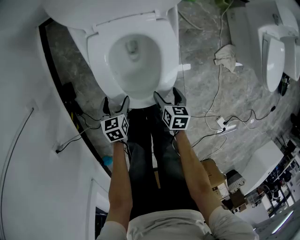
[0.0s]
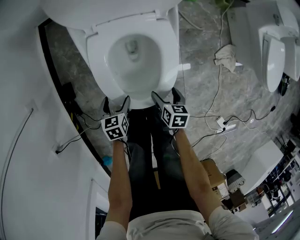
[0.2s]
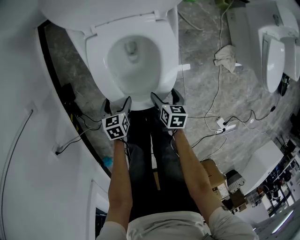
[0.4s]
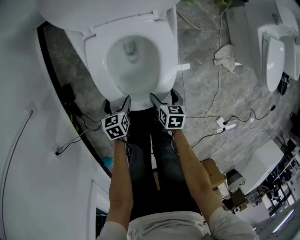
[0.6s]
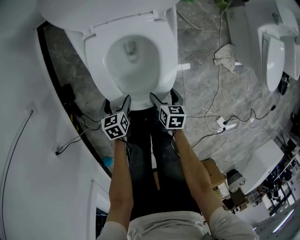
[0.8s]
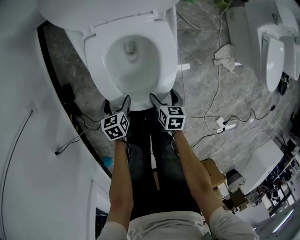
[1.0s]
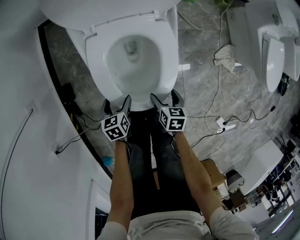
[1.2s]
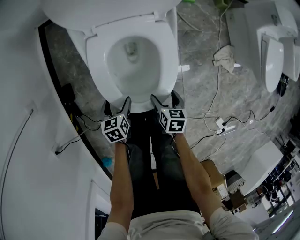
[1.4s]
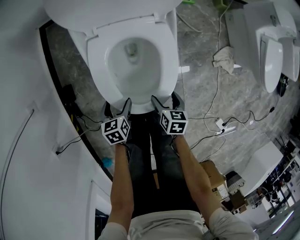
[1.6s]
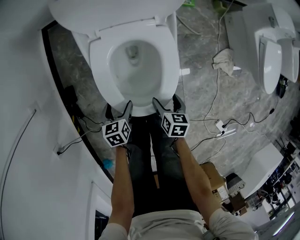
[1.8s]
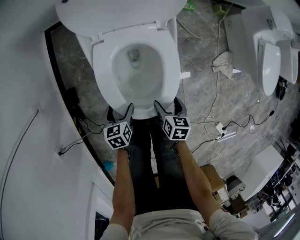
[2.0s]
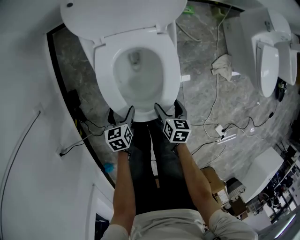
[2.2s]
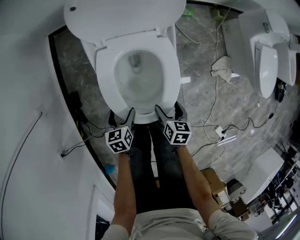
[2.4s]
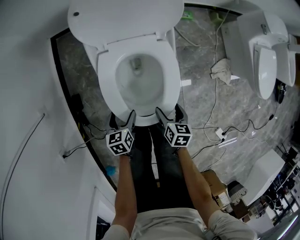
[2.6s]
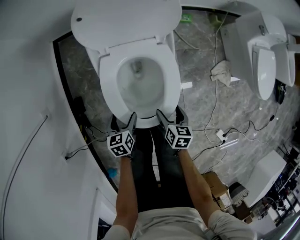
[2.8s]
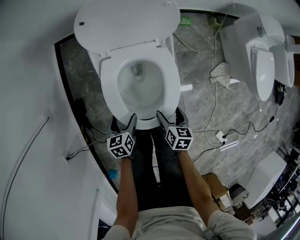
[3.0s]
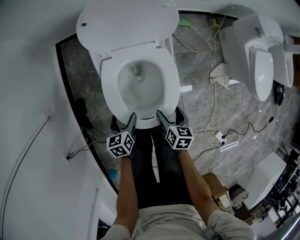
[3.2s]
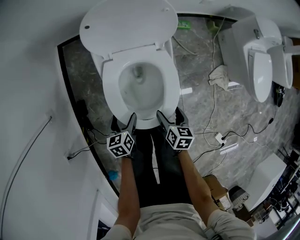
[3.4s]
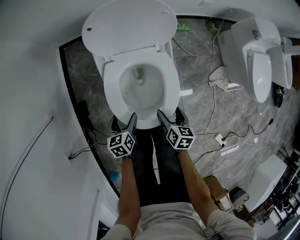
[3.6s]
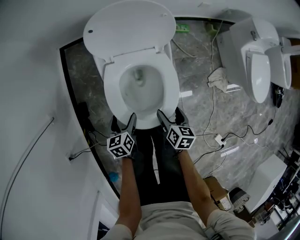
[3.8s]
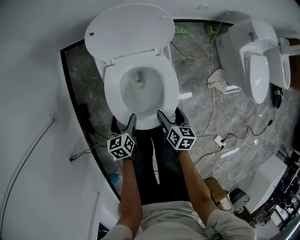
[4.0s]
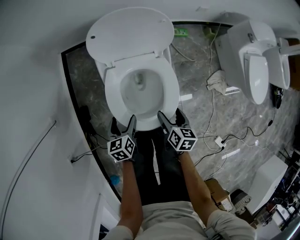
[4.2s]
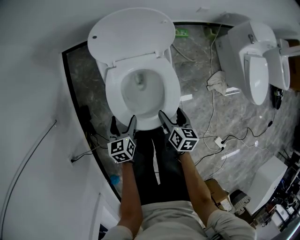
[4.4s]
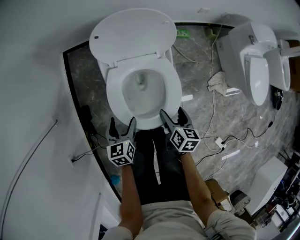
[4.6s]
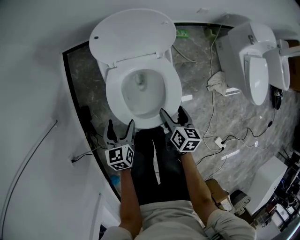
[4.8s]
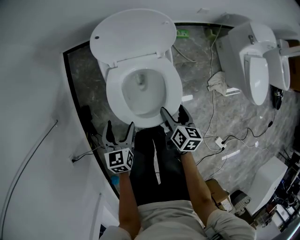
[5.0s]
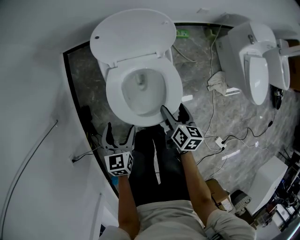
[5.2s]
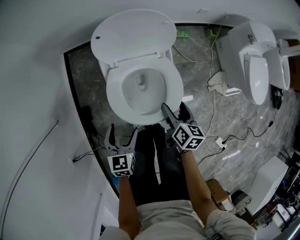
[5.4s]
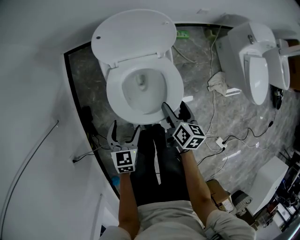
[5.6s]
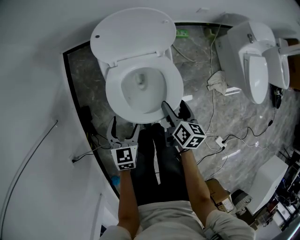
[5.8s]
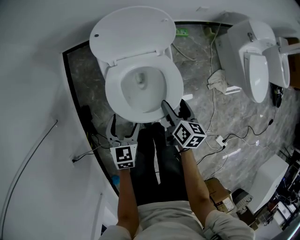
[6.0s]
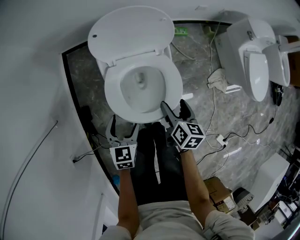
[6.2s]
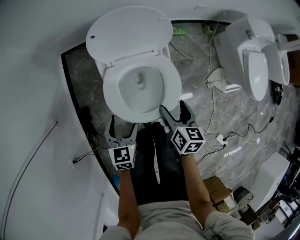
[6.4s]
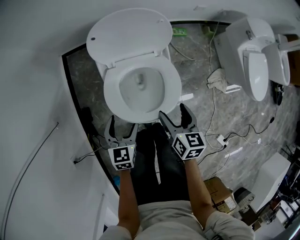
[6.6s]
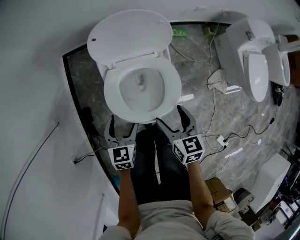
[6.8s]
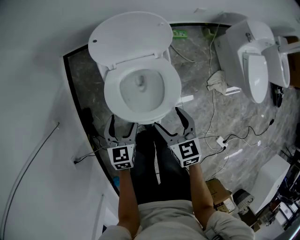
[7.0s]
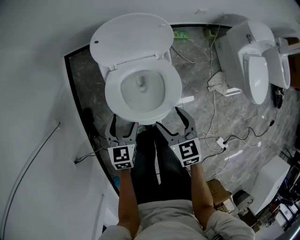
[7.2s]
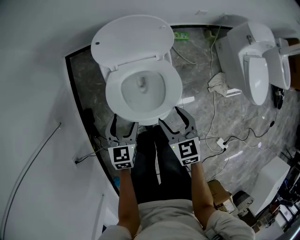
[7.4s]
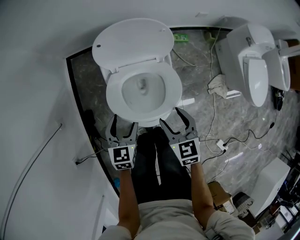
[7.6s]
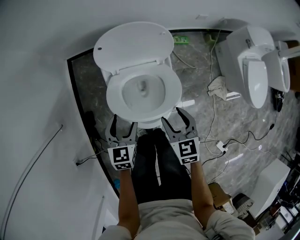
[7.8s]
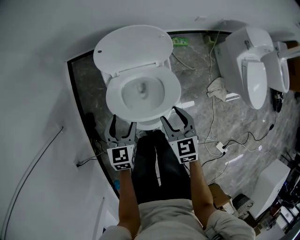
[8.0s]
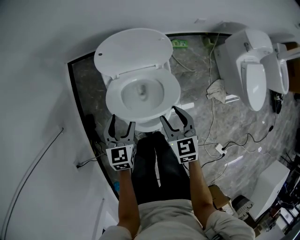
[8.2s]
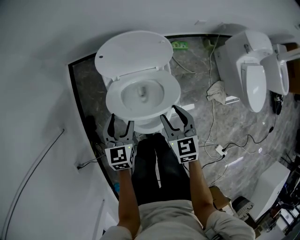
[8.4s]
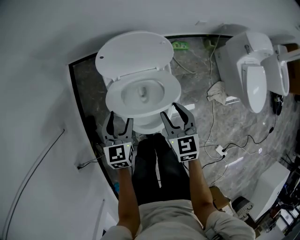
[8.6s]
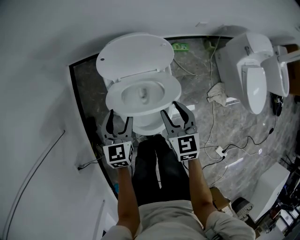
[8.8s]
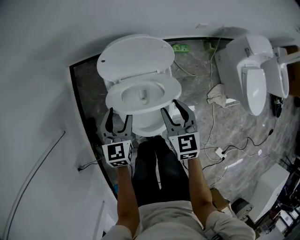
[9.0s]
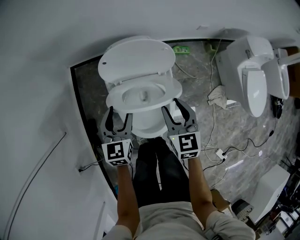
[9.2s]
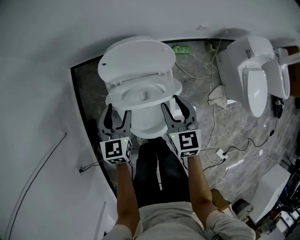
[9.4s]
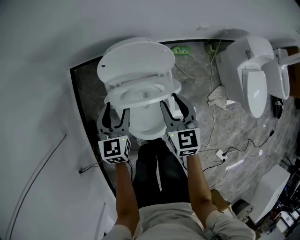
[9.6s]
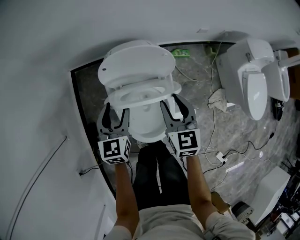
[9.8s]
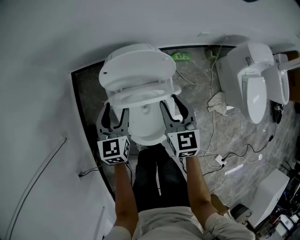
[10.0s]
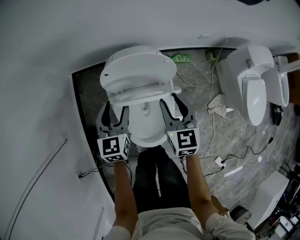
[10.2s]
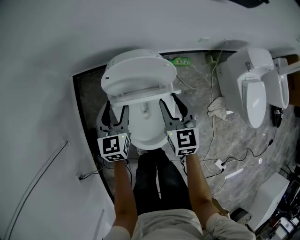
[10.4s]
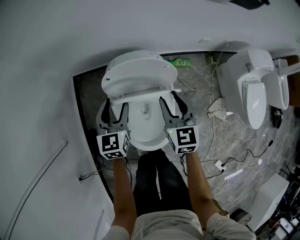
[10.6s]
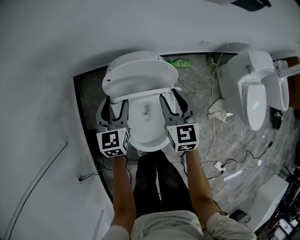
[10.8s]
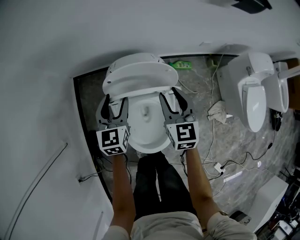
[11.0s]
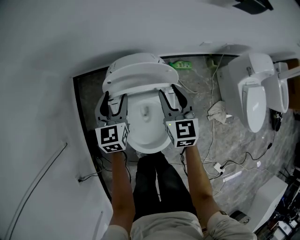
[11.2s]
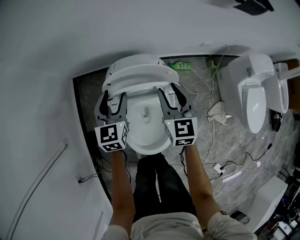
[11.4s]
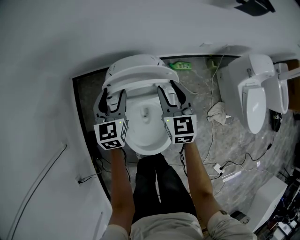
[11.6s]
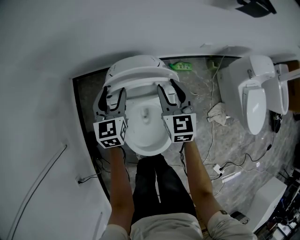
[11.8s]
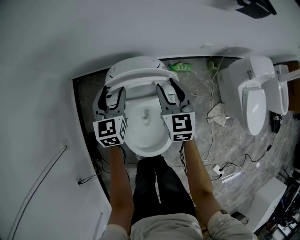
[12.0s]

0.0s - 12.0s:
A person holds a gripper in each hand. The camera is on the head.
0.0s - 1.6s: The grippers stay close to where they were, moving slightly.
1.6s - 3.0s: The grippers both shift upward by roughly 10 cm.
3.0s - 4.4s: Both grippers travel together upward, approximately 10 cm.
4.4s - 6.0s: Both grippers move upward, some 5 cm. The left gripper changes its angle by some 30 degrees.
6.0s - 7.6s: The right gripper shifts some 5 cm upward, and rotates around the line of its fingers by about 40 degrees, counterclockwise from behind.
7.6s - 9.0s: The left gripper is displaced forward and upward by about 10 cm. Meanwhile the right gripper shifts approximately 10 cm forward.
9.0s - 10.4s: Both grippers travel together forward, approximately 10 cm.
10.4s - 12.0s: The grippers both shift forward by some 10 cm.

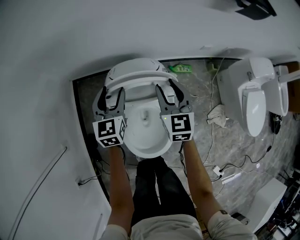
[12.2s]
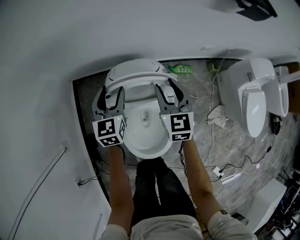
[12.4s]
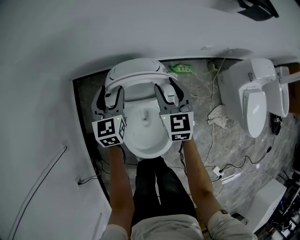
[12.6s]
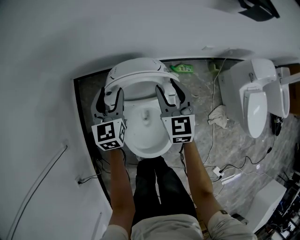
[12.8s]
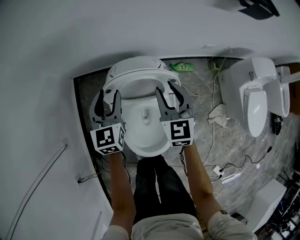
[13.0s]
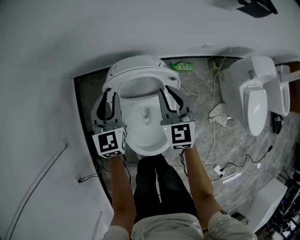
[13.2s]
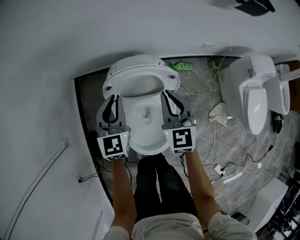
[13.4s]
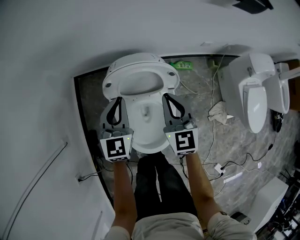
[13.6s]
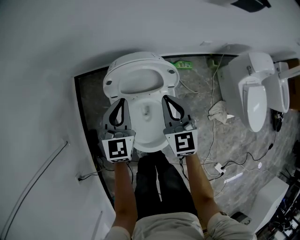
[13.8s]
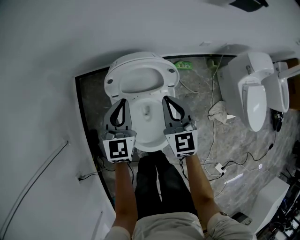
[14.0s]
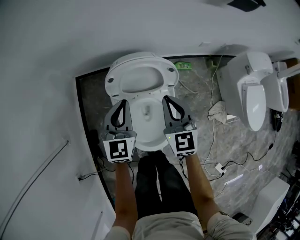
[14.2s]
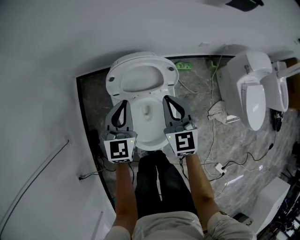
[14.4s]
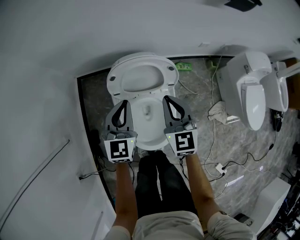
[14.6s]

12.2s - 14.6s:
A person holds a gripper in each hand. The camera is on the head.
12.2s - 13.4s: The two grippers go approximately 5 cm backward. The right gripper closes its fingers; the left gripper closes up.
13.4s - 14.6s: Both grippers travel together backward, approximately 5 cm.

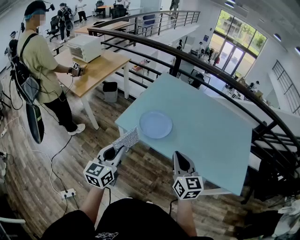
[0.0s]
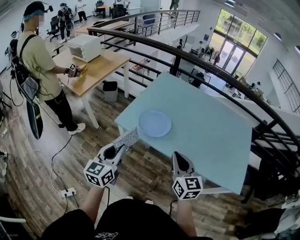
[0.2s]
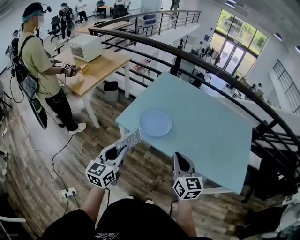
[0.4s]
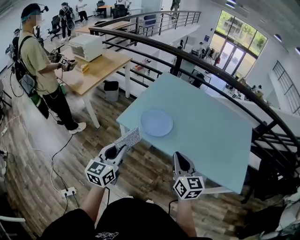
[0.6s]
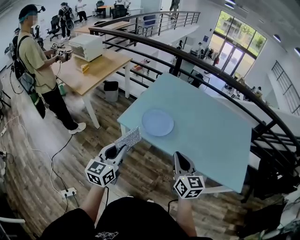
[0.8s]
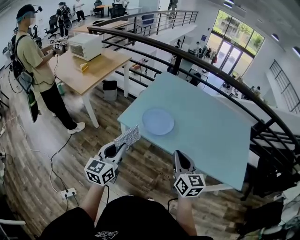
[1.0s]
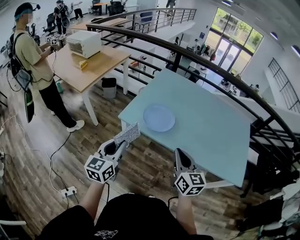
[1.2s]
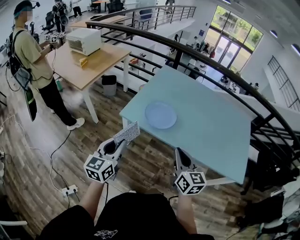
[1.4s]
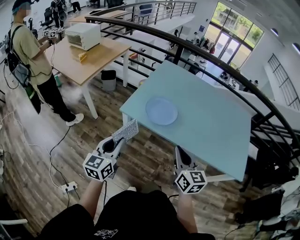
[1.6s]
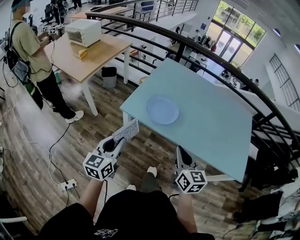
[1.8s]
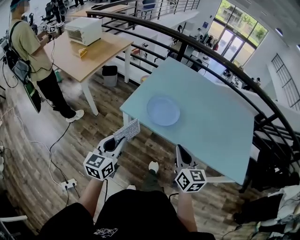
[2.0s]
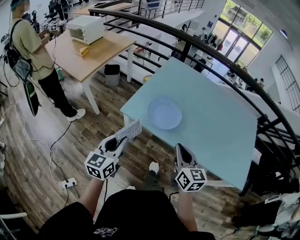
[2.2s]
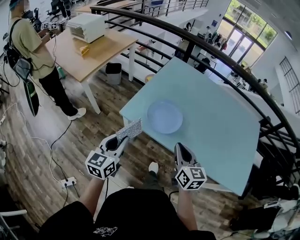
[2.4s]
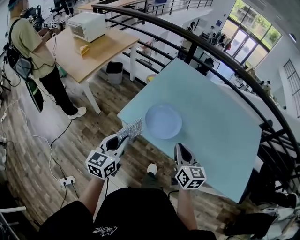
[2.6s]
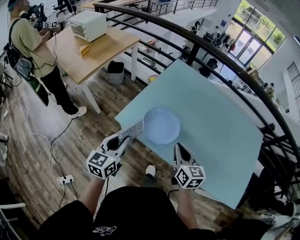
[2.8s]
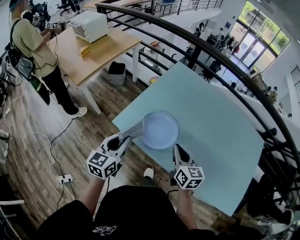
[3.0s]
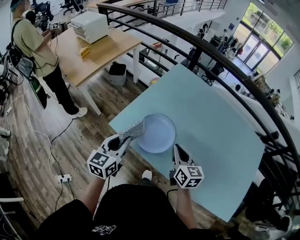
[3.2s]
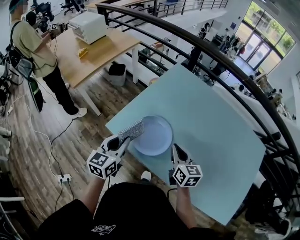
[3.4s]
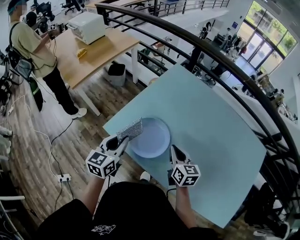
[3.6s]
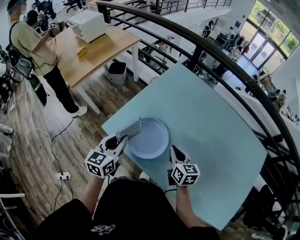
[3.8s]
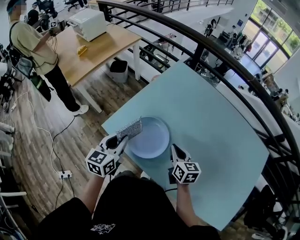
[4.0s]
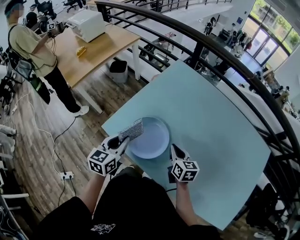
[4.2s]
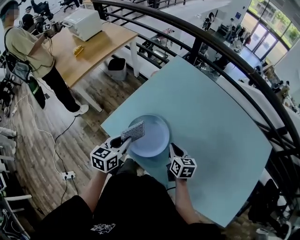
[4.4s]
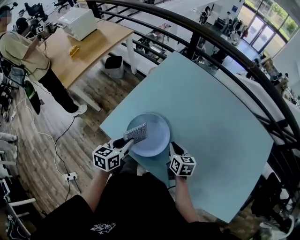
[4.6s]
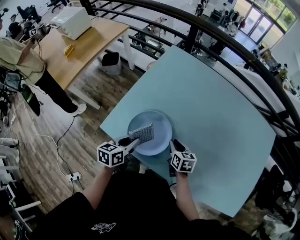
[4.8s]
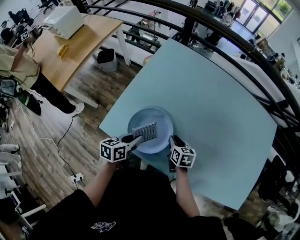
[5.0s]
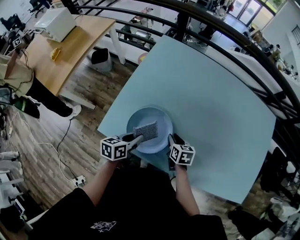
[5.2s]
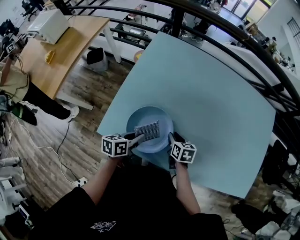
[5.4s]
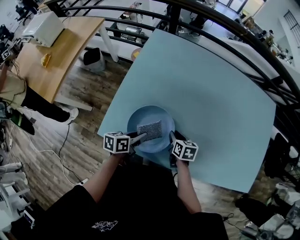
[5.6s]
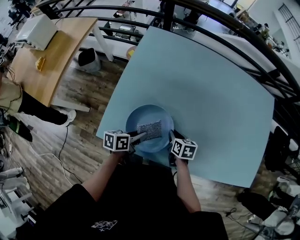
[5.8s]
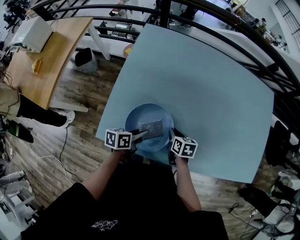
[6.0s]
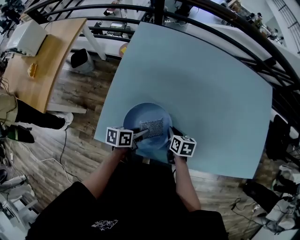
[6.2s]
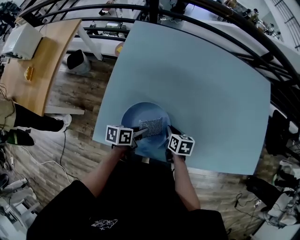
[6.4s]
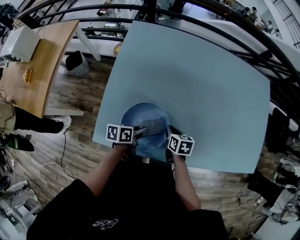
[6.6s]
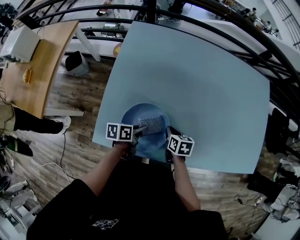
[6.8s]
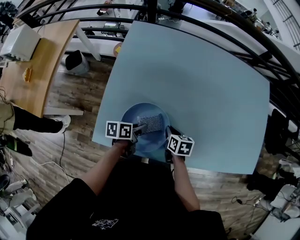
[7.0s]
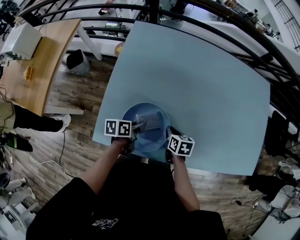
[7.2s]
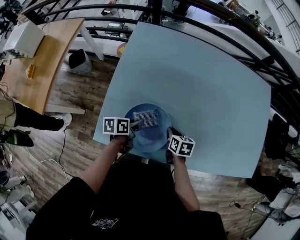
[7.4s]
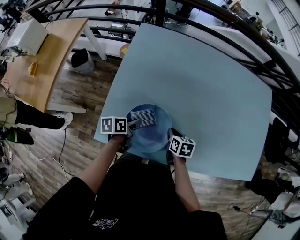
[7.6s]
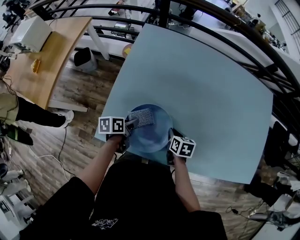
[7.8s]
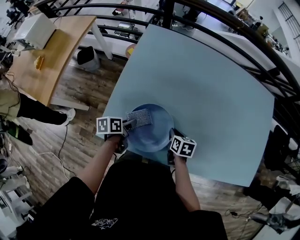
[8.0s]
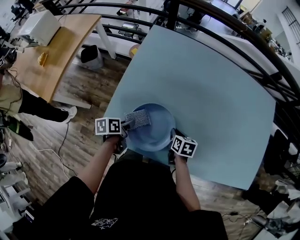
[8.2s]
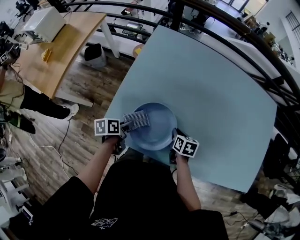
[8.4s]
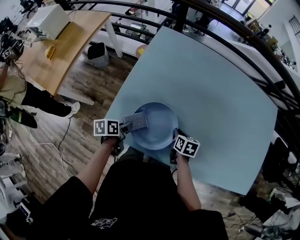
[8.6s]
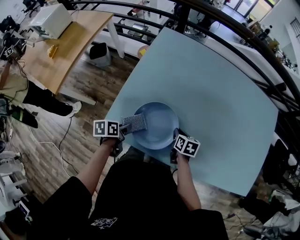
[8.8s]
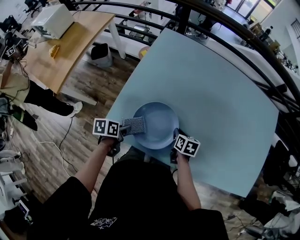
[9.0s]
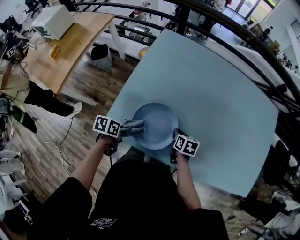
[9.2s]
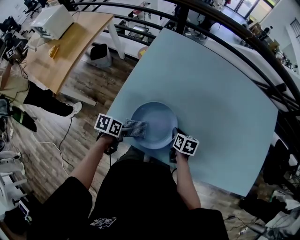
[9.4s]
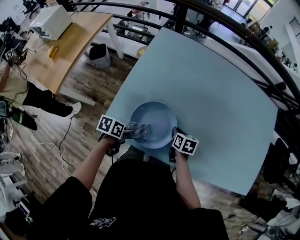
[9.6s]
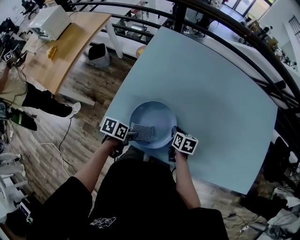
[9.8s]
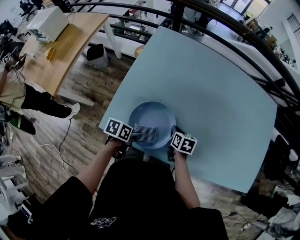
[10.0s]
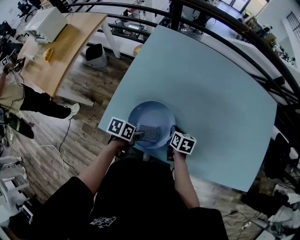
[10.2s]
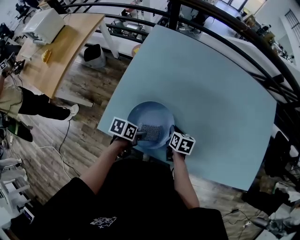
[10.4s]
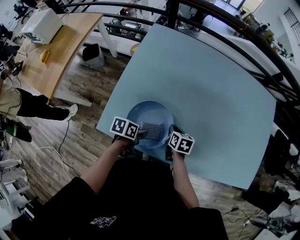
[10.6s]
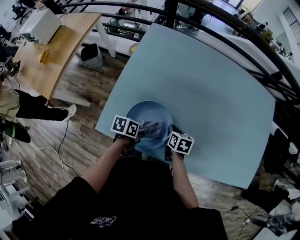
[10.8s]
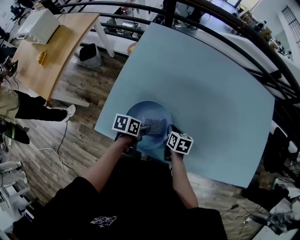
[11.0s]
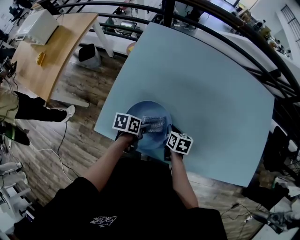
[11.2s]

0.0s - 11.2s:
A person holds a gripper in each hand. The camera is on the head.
0.0s - 1.6s: The grippers both shift to the left by roughly 5 cm.
1.6s - 3.2s: The right gripper shifts some 30 cm forward. Meanwhile the left gripper moves forward and to the right, some 25 cm.
3.2s - 4.8s: The left gripper moves downward, to the right and forward, roughly 20 cm, and turns by about 30 degrees. Meanwhile the right gripper goes approximately 15 cm downward, and turns by approximately 20 degrees.
4.8s - 6.4s: The left gripper is displaced downward by approximately 10 cm, and rotates roughly 40 degrees, while the right gripper goes approximately 5 cm downward, and rotates some 20 degrees.
6.4s - 8.0s: The left gripper heads to the left, covering roughly 10 cm.
8.0s - 9.6s: The left gripper travels backward by roughly 10 cm.
9.6s - 11.2s: The left gripper shifts some 10 cm forward and to the right.
